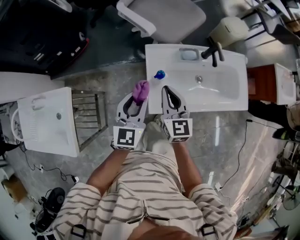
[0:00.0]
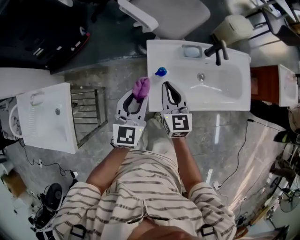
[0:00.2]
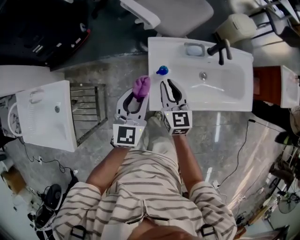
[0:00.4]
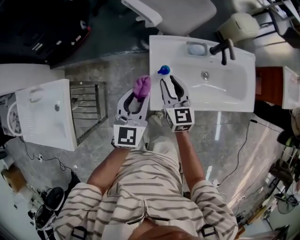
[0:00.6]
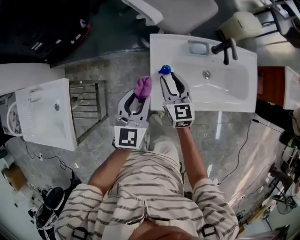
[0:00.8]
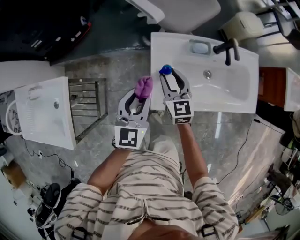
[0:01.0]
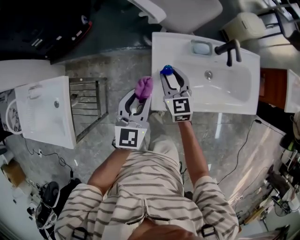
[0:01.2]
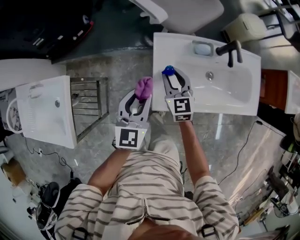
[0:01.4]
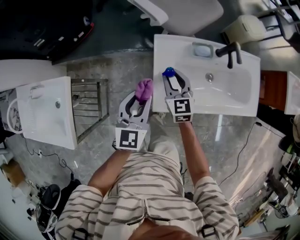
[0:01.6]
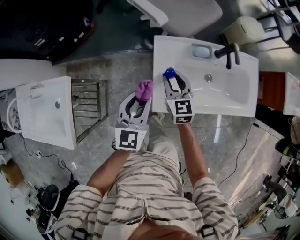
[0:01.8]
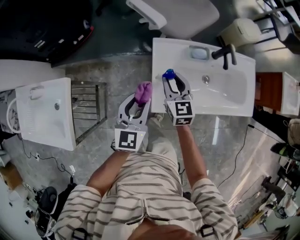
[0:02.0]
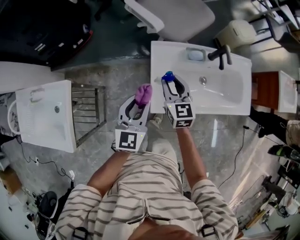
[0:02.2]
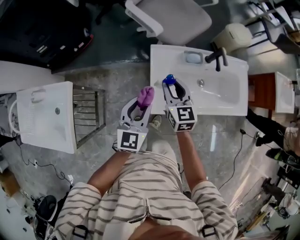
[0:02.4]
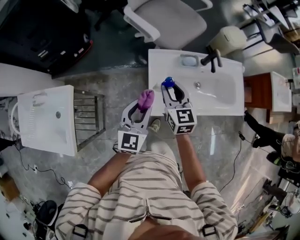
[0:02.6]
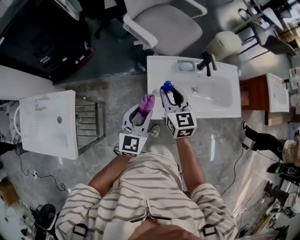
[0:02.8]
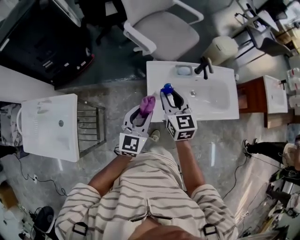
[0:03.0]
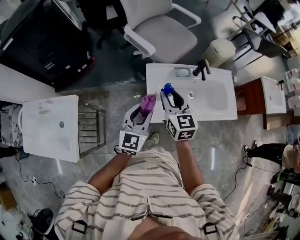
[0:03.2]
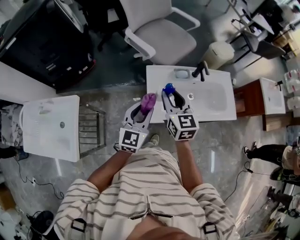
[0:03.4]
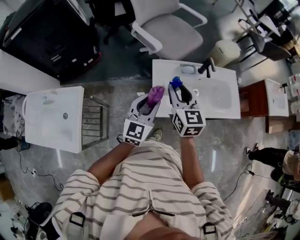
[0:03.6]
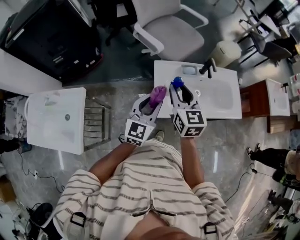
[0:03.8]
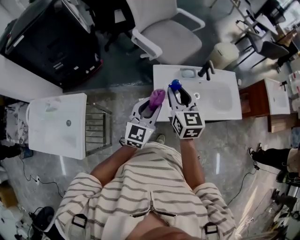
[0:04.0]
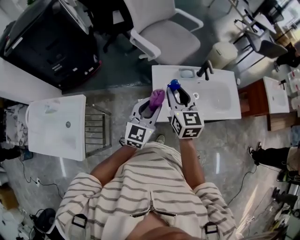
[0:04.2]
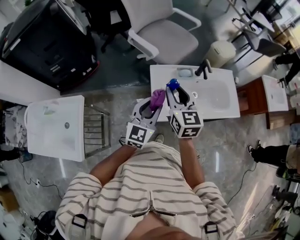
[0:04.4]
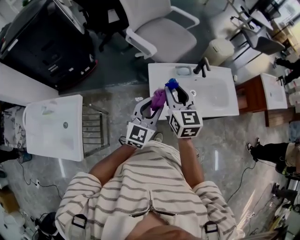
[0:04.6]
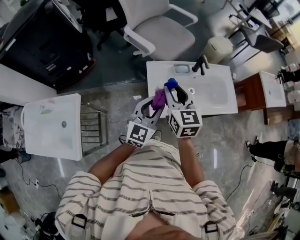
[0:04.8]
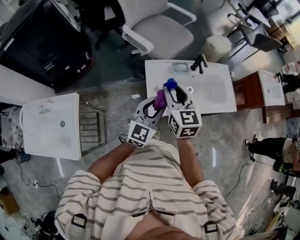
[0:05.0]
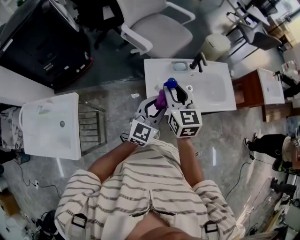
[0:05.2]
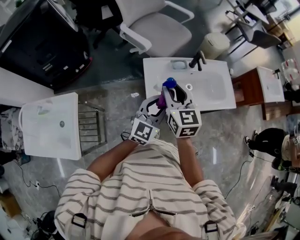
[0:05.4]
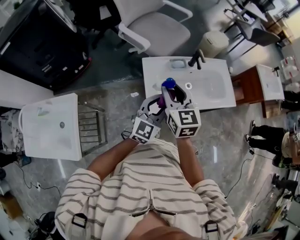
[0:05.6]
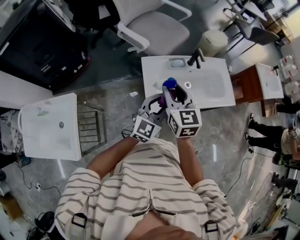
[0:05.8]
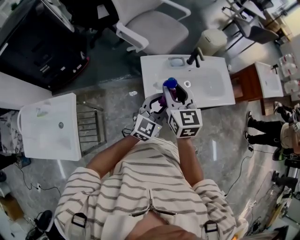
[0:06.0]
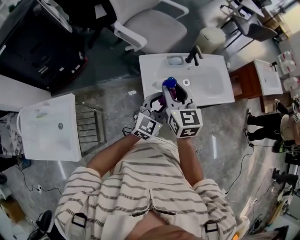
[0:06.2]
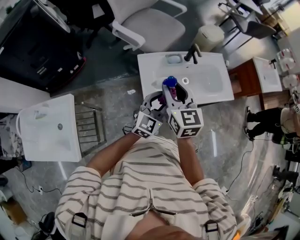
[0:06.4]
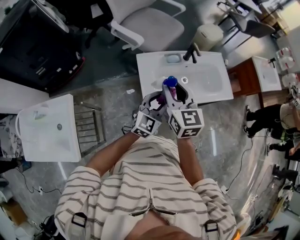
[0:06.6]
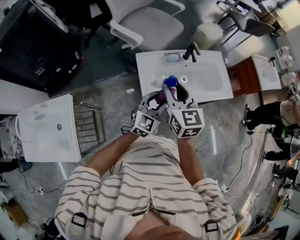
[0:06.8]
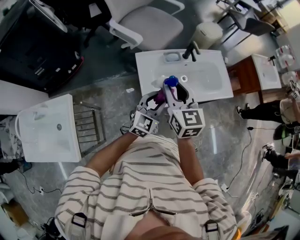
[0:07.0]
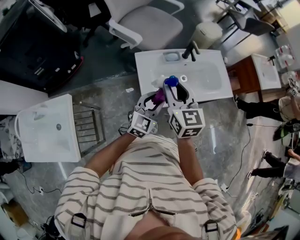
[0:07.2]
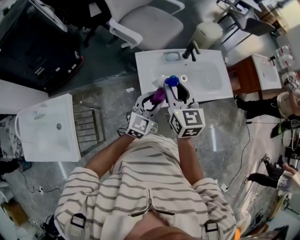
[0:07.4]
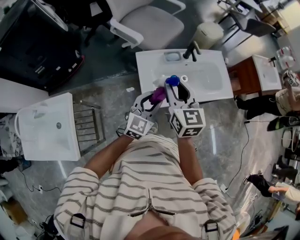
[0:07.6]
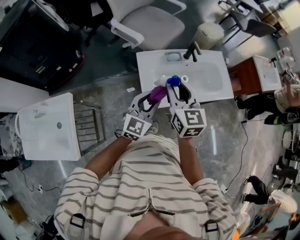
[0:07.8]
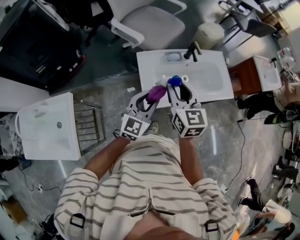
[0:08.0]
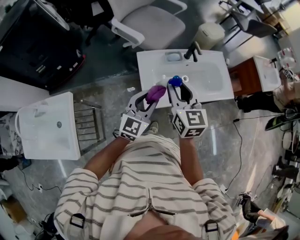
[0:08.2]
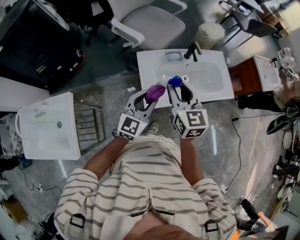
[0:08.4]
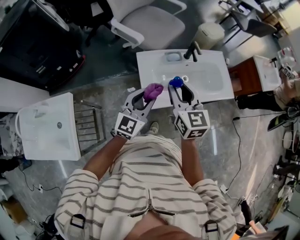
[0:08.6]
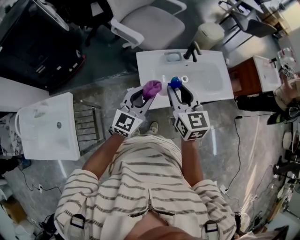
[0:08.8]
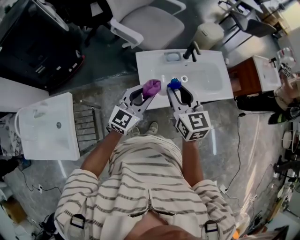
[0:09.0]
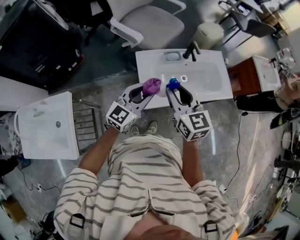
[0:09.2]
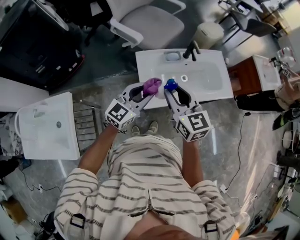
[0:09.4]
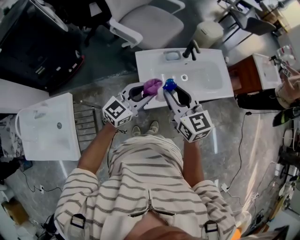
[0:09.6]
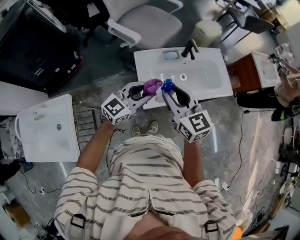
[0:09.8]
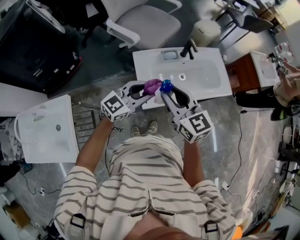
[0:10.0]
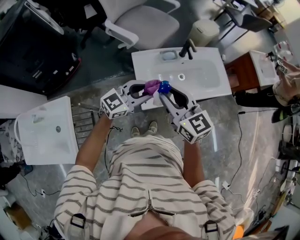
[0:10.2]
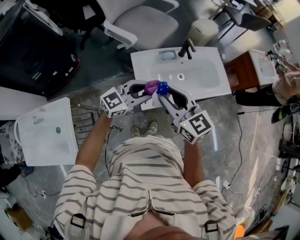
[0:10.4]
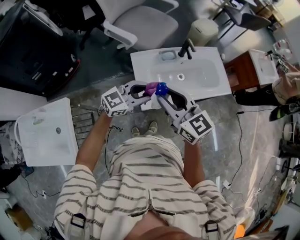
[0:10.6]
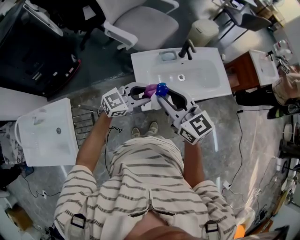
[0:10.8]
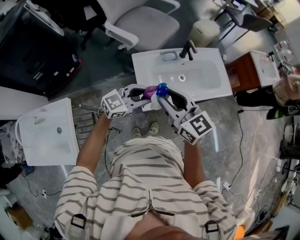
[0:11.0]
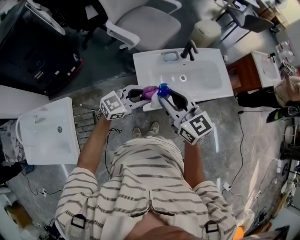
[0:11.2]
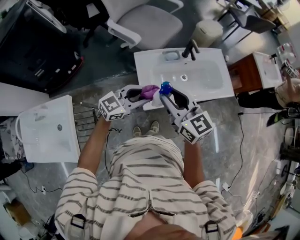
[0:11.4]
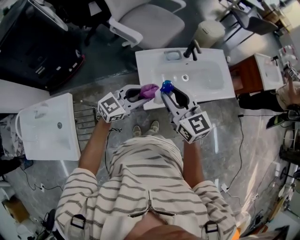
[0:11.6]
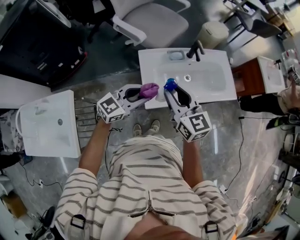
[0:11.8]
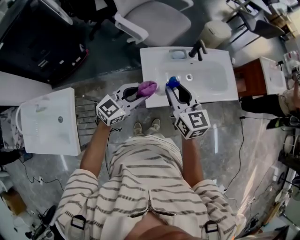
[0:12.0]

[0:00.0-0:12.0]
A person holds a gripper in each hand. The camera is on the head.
0:00.0 to 0:01.6: The right gripper goes approximately 10 cm downward and forward, and opens up.
0:01.6 to 0:03.0: The left gripper is displaced upward by about 5 cm. Meanwhile the right gripper is displaced upward by roughly 15 cm.
0:03.0 to 0:04.4: The right gripper travels upward by approximately 5 cm.
0:04.4 to 0:06.0: The left gripper travels to the right by approximately 10 cm.
0:06.0 to 0:07.6: The grippers stay close to where they were, moving slightly.
0:07.6 to 0:09.0: The left gripper changes place by approximately 5 cm.
0:09.0 to 0:10.4: The left gripper turns by roughly 30 degrees.
0:10.4 to 0:12.0: The right gripper shifts by some 5 cm, while the left gripper changes place by about 5 cm.

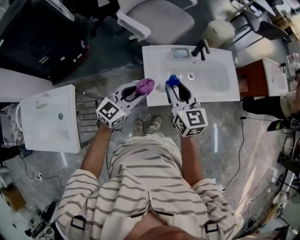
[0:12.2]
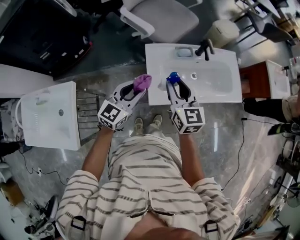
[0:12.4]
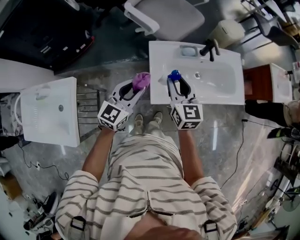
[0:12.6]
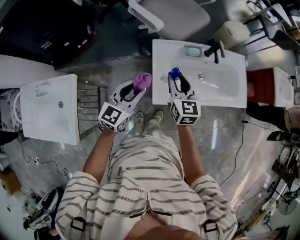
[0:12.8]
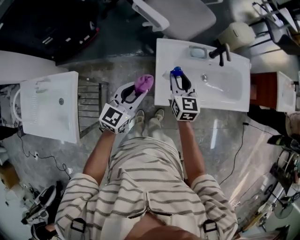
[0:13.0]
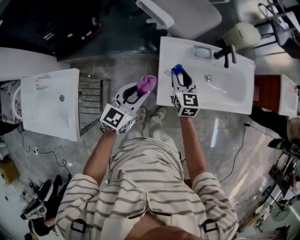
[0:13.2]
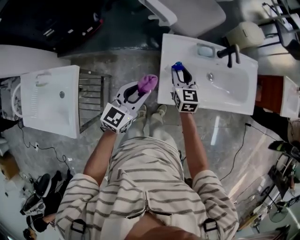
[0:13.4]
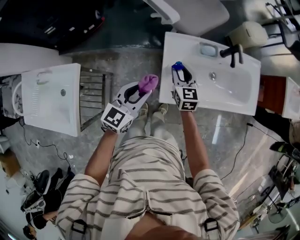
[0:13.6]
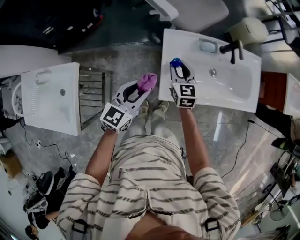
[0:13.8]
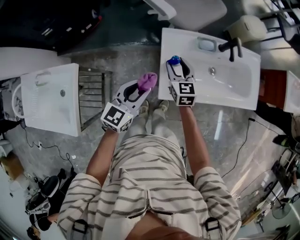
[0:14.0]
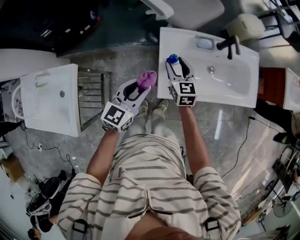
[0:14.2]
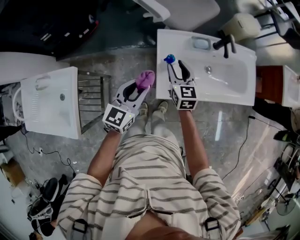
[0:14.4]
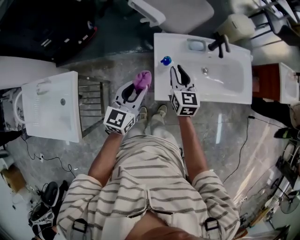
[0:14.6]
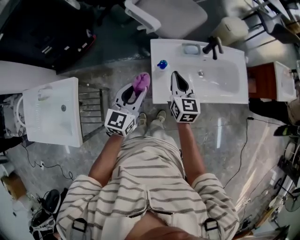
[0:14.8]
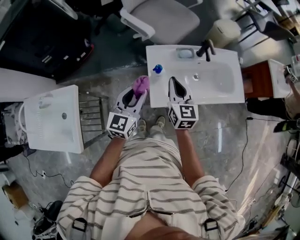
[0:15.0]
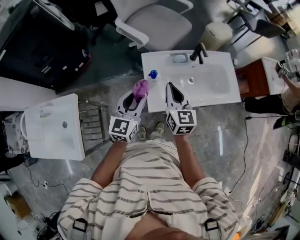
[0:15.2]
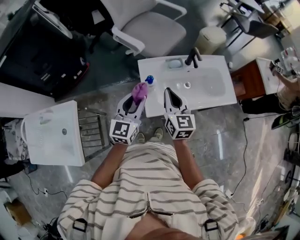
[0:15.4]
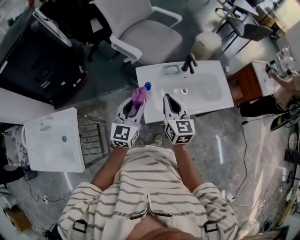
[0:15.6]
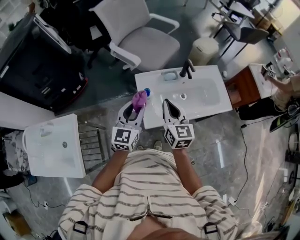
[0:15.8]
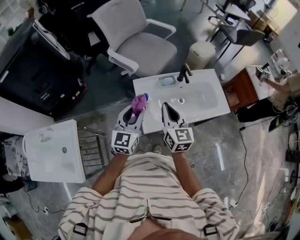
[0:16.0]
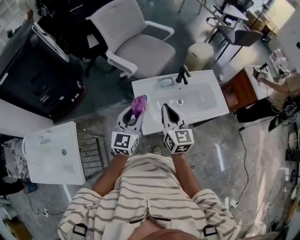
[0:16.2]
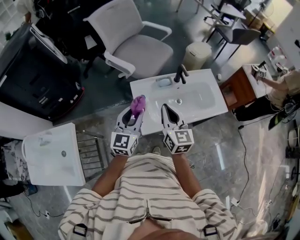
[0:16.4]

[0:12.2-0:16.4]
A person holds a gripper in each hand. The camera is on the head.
0:12.2 to 0:13.6: The left gripper heads downward and to the left, covering approximately 10 cm, and swivels some 20 degrees; the right gripper moves downward and forward, roughly 20 cm.
0:13.6 to 0:15.0: The right gripper goes roughly 15 cm upward and backward, and closes its fingers, while the left gripper is displaced upward by some 5 cm.
0:15.0 to 0:16.4: Both grippers travel together upward, some 5 cm.

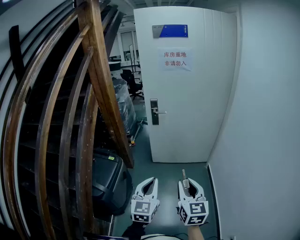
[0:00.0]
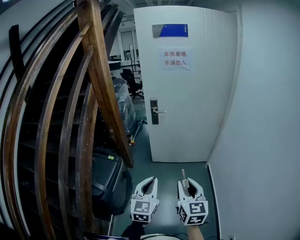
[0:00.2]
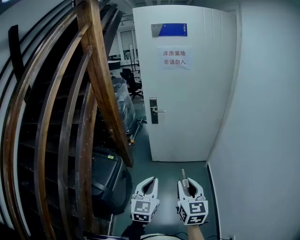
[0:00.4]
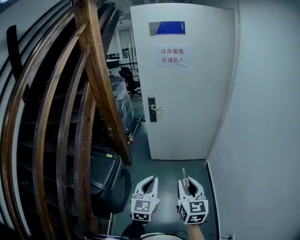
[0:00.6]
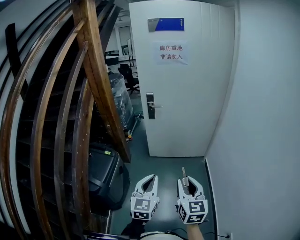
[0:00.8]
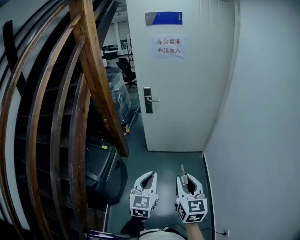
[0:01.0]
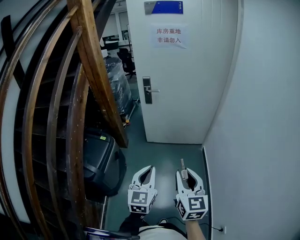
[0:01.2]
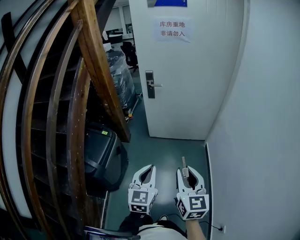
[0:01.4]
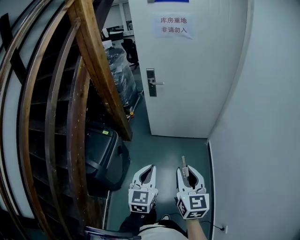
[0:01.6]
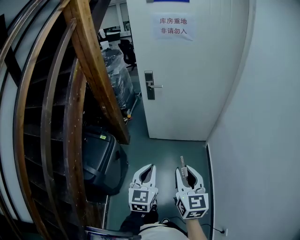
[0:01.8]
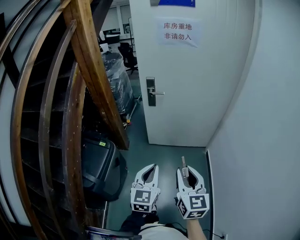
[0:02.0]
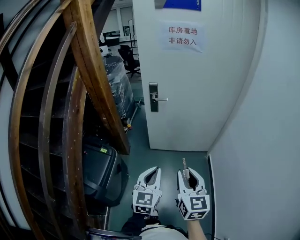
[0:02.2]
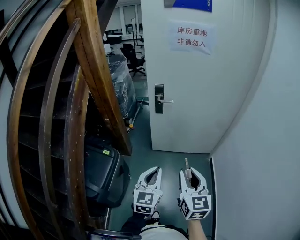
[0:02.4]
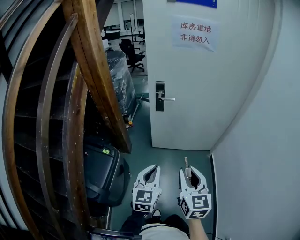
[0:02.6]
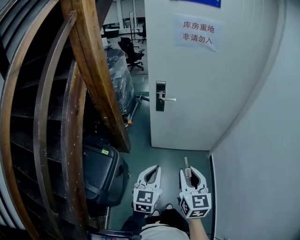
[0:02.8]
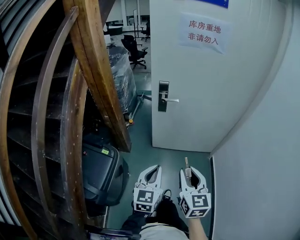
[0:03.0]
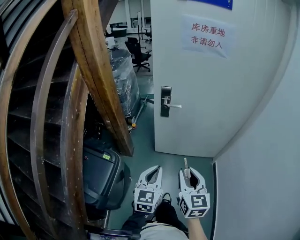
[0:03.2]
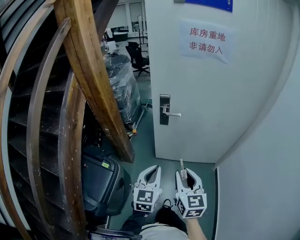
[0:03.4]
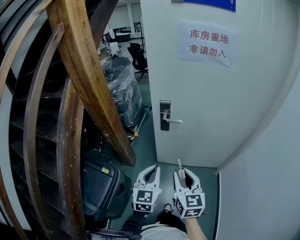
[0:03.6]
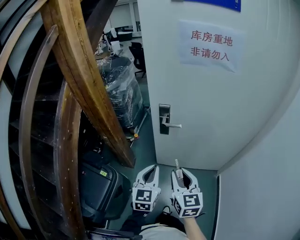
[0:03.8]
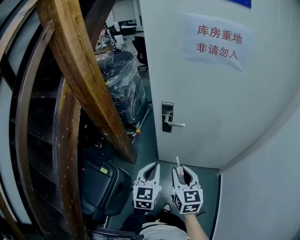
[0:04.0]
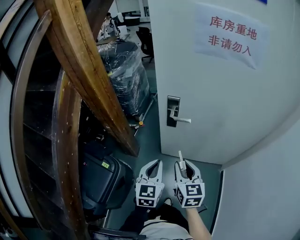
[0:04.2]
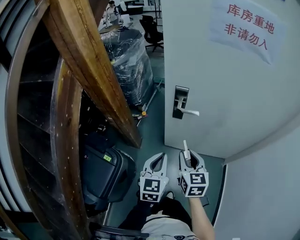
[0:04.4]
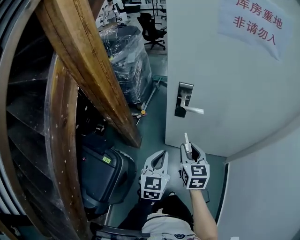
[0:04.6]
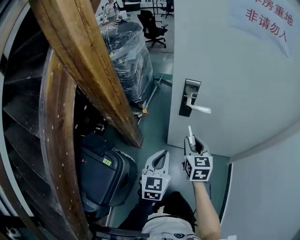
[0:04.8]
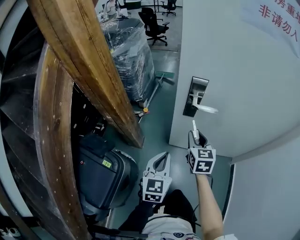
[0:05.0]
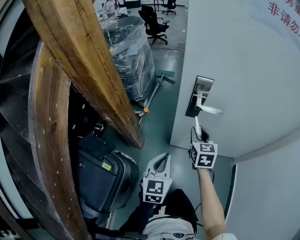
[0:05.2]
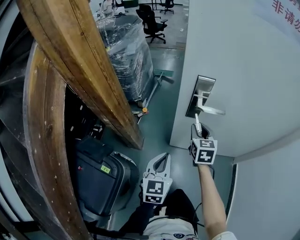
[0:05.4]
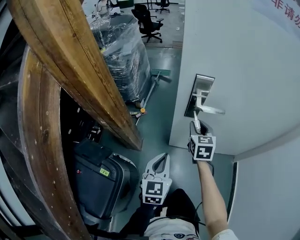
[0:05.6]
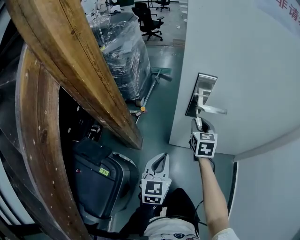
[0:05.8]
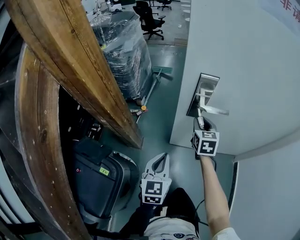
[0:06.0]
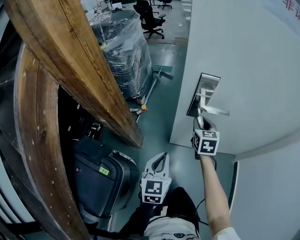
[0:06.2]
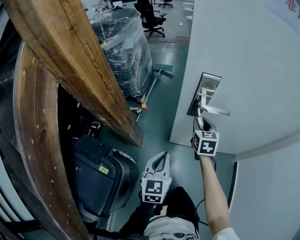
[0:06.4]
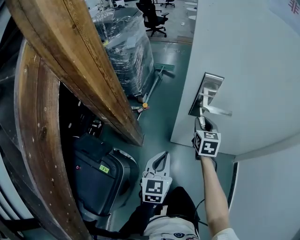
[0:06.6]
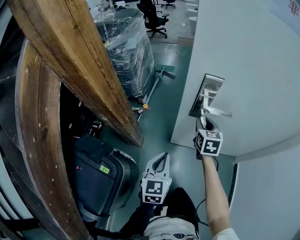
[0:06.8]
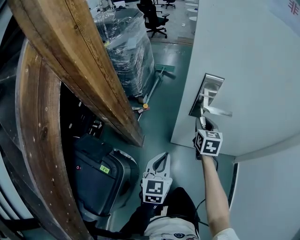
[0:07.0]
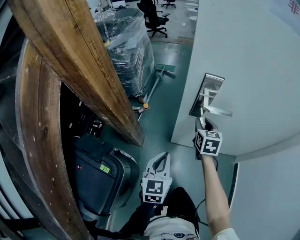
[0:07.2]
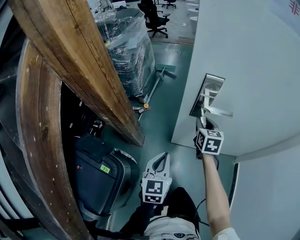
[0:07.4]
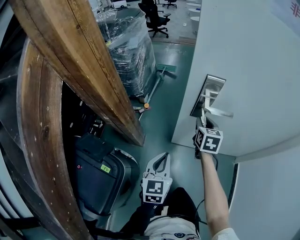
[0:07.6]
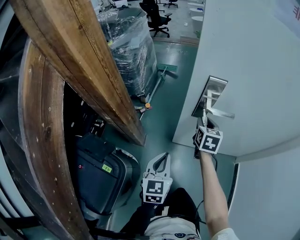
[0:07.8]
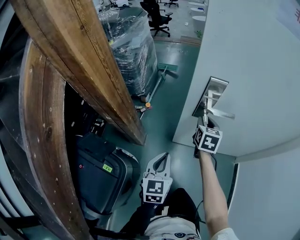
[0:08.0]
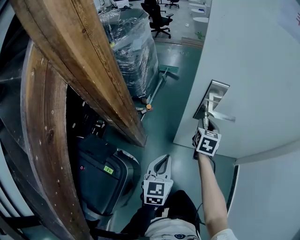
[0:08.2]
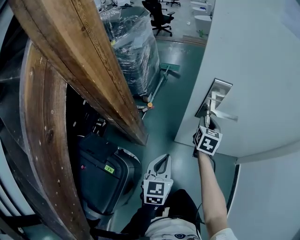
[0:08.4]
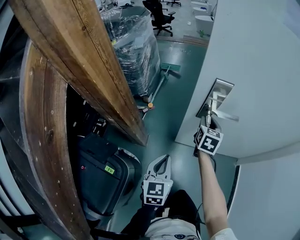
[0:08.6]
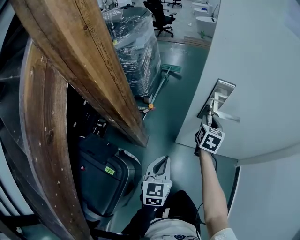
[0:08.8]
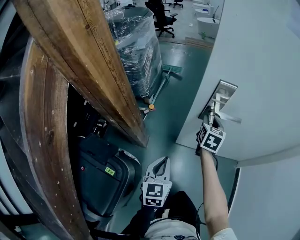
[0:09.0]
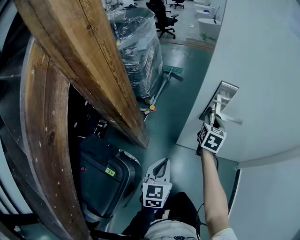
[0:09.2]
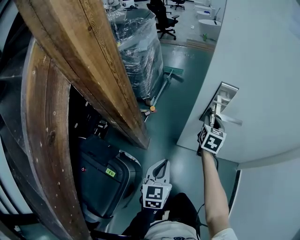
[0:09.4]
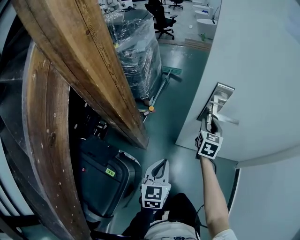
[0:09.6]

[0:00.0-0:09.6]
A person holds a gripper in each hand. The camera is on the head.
0:00.0 to 0:01.6: The right gripper changes place by about 5 cm, while the left gripper shifts approximately 10 cm downward and to the right.
0:01.6 to 0:03.2: The right gripper heads forward and to the left, covering roughly 30 cm, while the left gripper shifts about 25 cm forward.
0:03.2 to 0:04.8: The two grippers go roughly 35 cm forward and downward.
0:04.8 to 0:06.4: The right gripper is displaced forward and downward by about 20 cm; the left gripper heads downward and forward, covering approximately 10 cm.
0:06.4 to 0:09.6: There are only small adjustments of the grippers.
